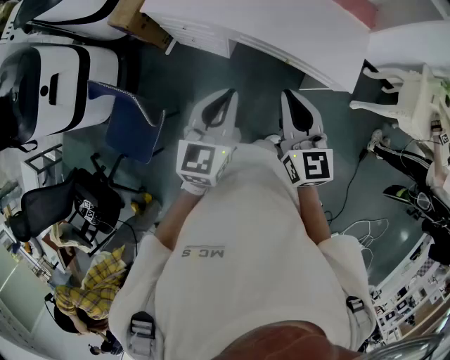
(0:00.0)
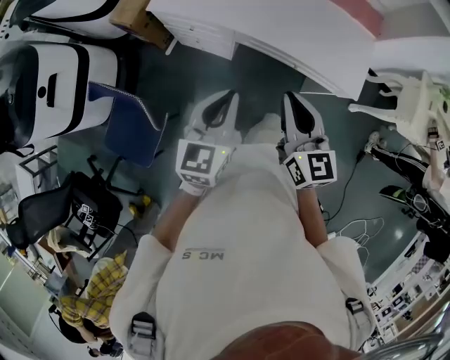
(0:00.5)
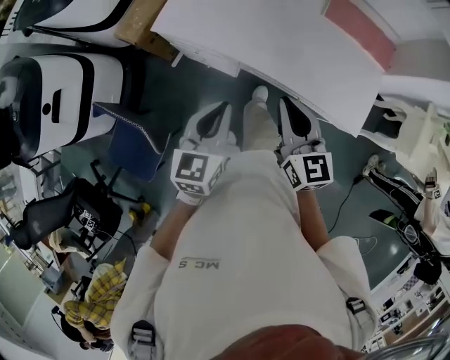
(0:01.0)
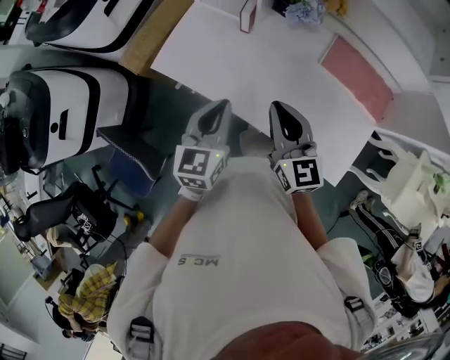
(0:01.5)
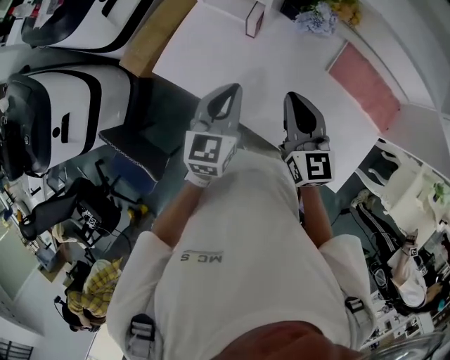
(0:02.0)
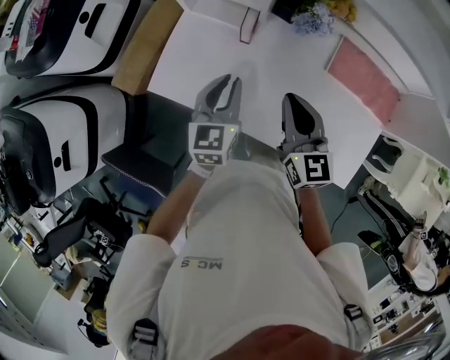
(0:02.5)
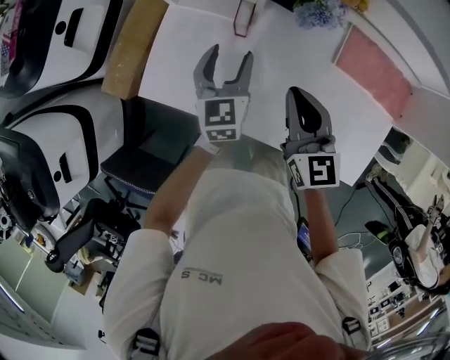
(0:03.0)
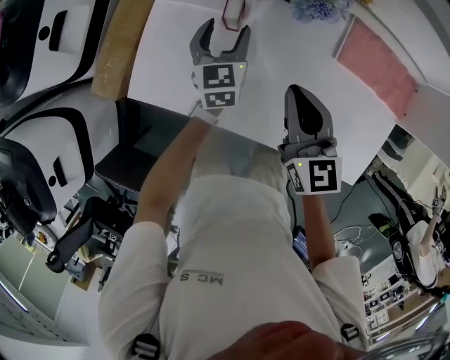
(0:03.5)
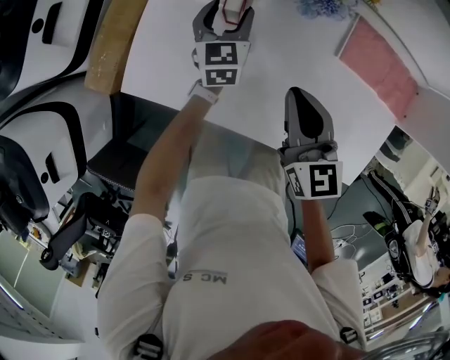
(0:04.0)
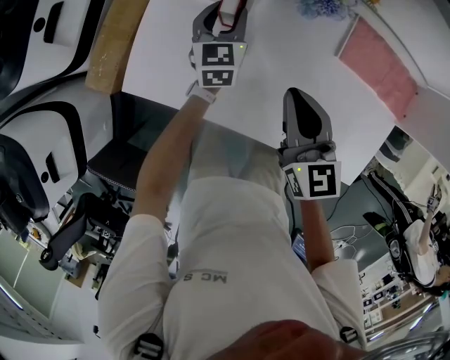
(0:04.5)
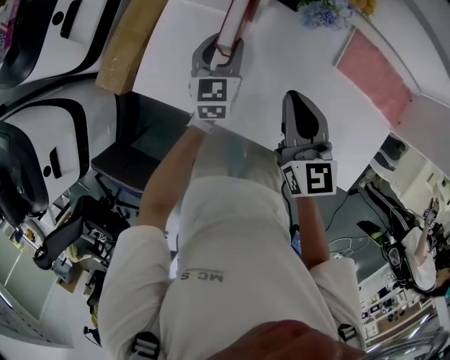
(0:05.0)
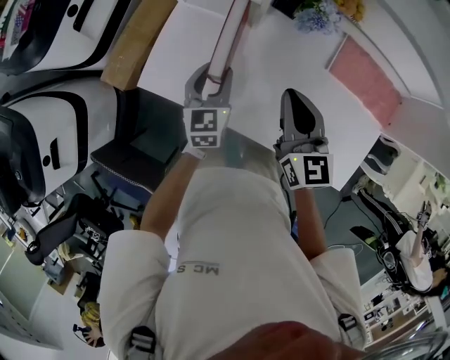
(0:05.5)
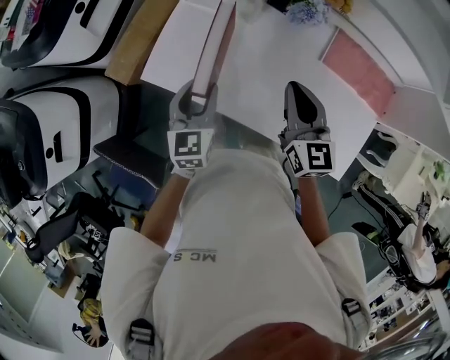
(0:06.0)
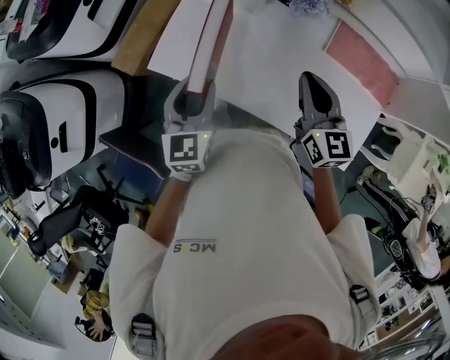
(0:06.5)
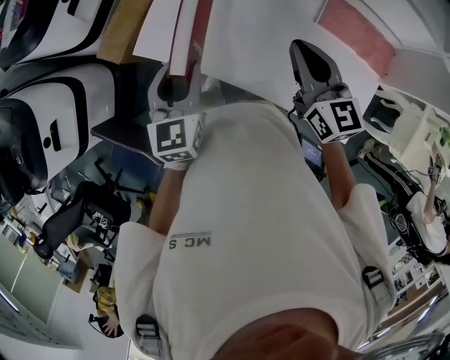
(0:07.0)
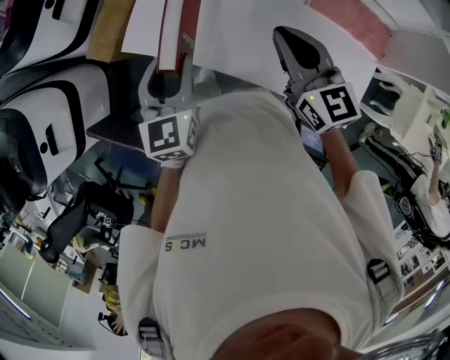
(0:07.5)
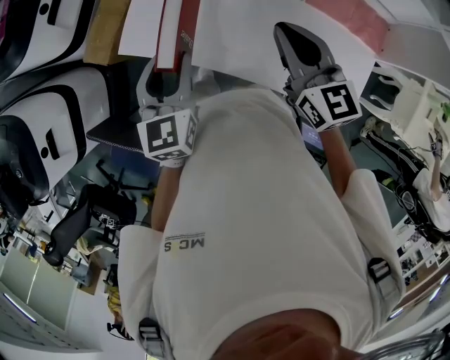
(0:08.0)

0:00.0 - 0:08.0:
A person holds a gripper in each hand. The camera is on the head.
0:00.0 - 0:02.0: The pair of grippers is taken forward, some 50 cm.
0:02.0 - 0:04.0: The right gripper is displaced downward and forward by about 15 cm. The left gripper travels forward and downward by some 35 cm, and opens its fingers.
0:04.0 - 0:06.0: The right gripper is displaced upward and backward by roughly 10 cm. Meanwhile the left gripper shifts roughly 30 cm backward, upward and to the left.
0:06.0 - 0:08.0: The left gripper heads upward and backward, covering about 10 cm. Meanwhile the right gripper changes place by about 5 cm.

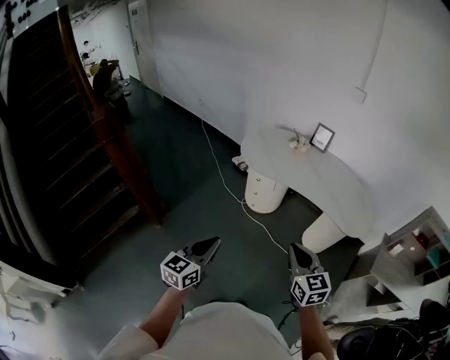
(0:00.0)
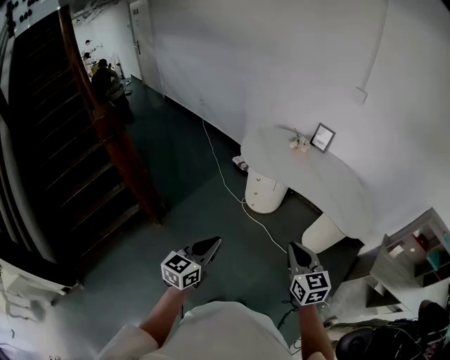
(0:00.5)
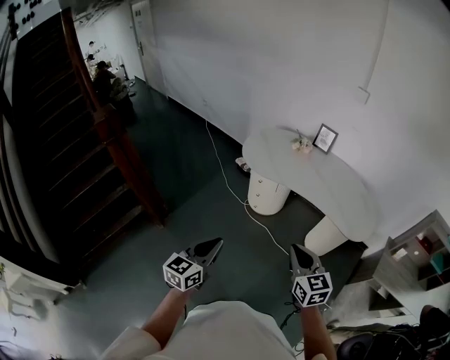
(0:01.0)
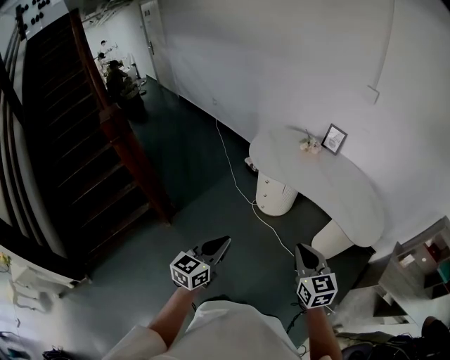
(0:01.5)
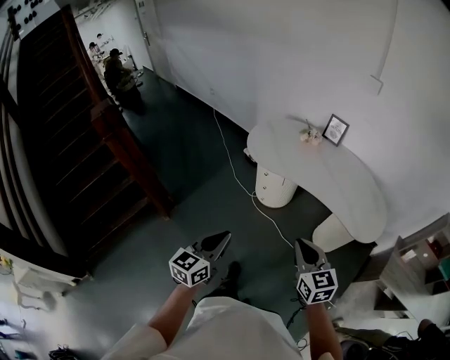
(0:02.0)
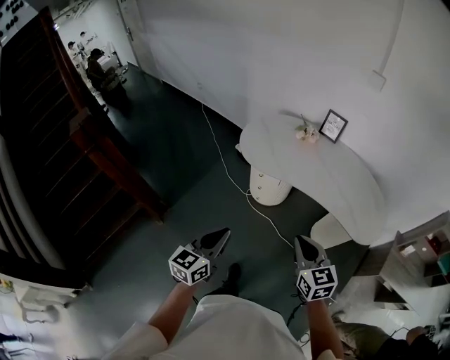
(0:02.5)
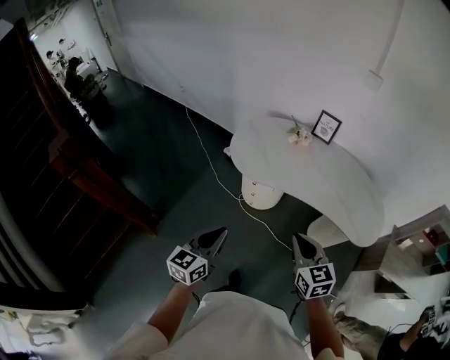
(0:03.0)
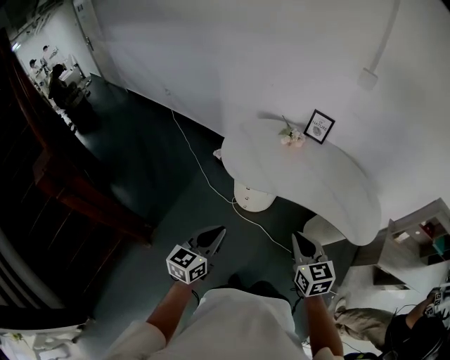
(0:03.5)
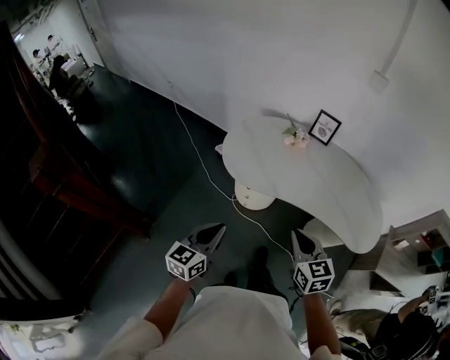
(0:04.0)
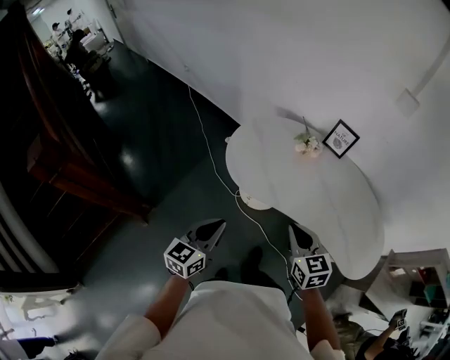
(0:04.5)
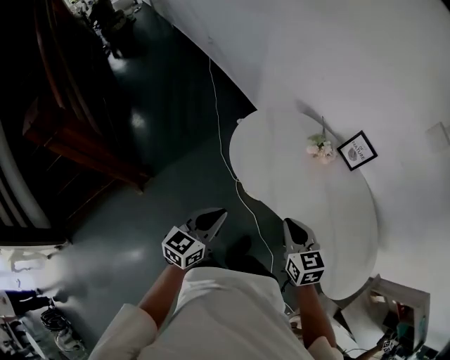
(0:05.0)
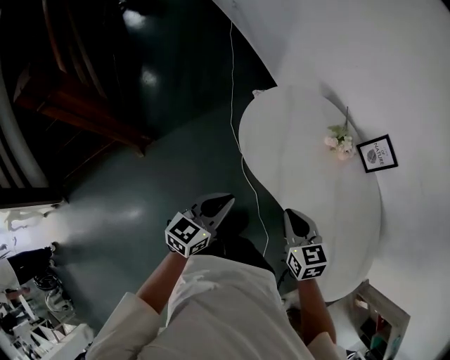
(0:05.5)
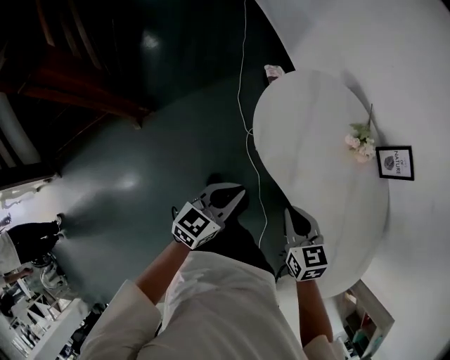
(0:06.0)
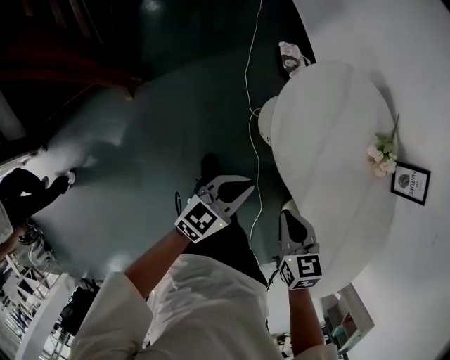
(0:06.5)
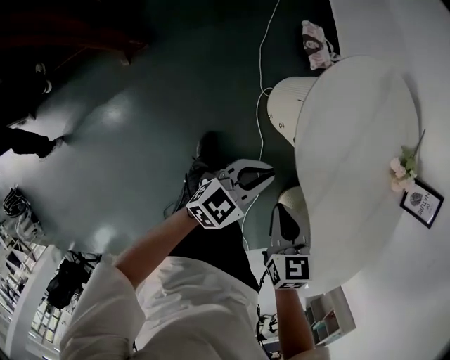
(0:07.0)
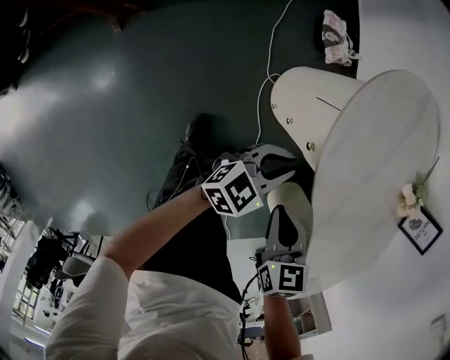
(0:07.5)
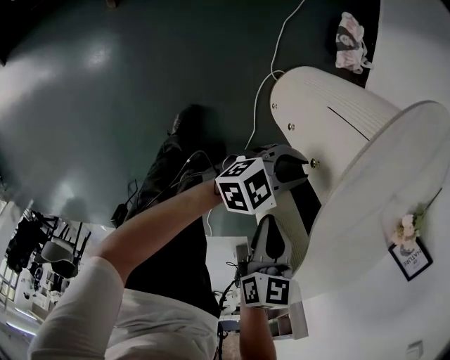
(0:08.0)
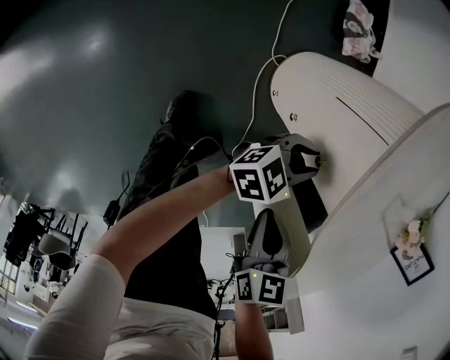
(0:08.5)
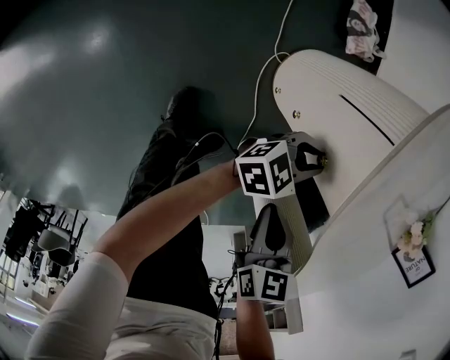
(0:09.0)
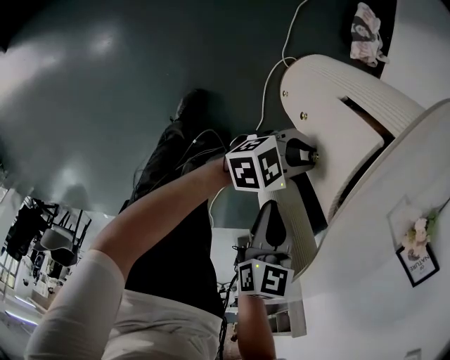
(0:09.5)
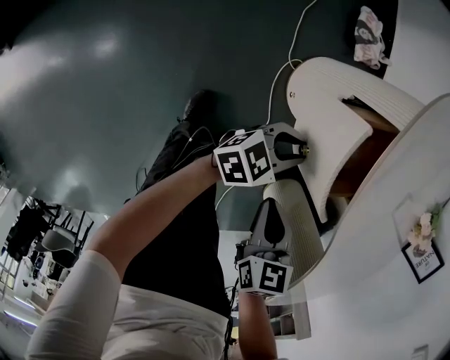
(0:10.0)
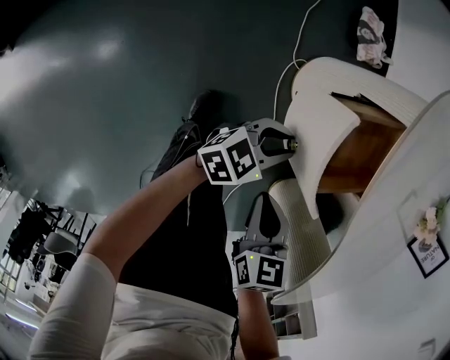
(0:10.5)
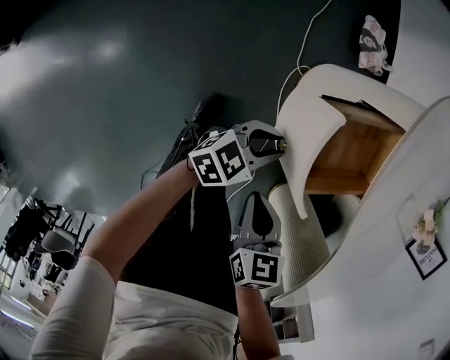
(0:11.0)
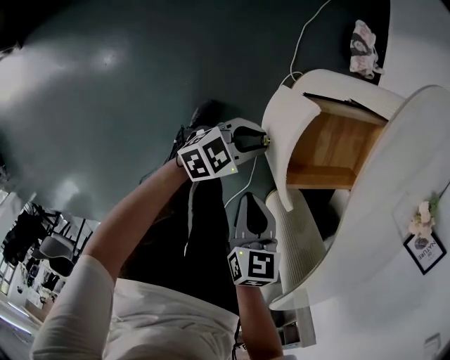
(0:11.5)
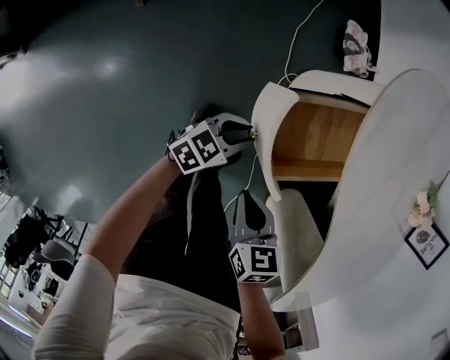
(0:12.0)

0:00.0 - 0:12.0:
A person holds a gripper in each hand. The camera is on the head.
0:00.0 - 0:02.0: The left gripper heads forward and to the right, covering approximately 10 cm, while the right gripper moves forward, some 10 cm.
0:02.0 - 0:04.0: Both grippers move forward, approximately 30 cm.
0:04.0 - 0:06.0: The right gripper ends up about 30 cm from where it was, and turns by about 40 degrees. The left gripper shifts by some 25 cm, and turns by approximately 20 degrees.
0:06.0 - 0:08.0: Both grippers move downward, approximately 35 cm.
0:08.0 - 0:10.0: The right gripper shifts by approximately 5 cm. The left gripper heads backward, covering about 5 cm.
0:10.0 - 0:12.0: The right gripper travels backward by roughly 5 cm; the left gripper goes some 15 cm to the left and backward.

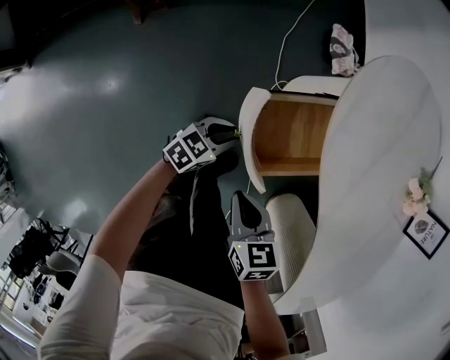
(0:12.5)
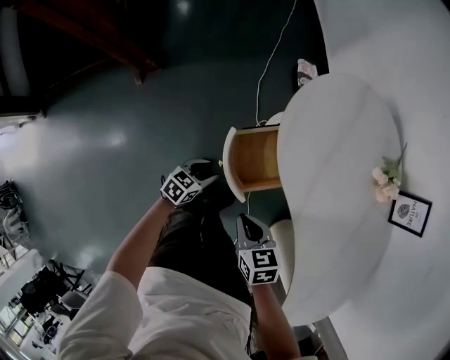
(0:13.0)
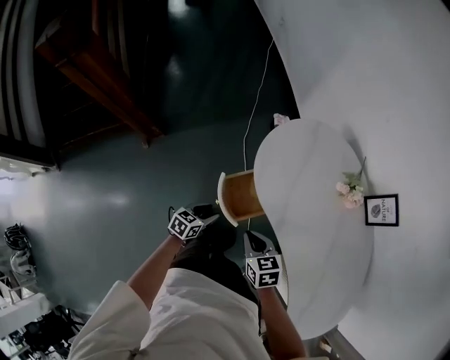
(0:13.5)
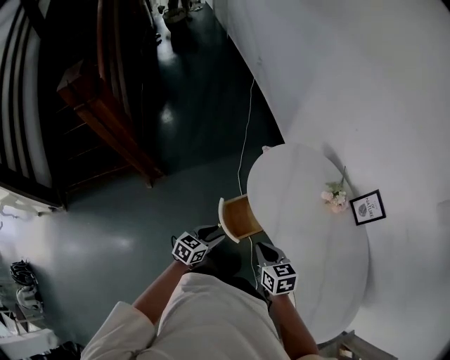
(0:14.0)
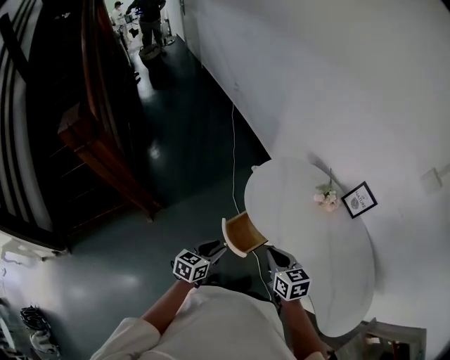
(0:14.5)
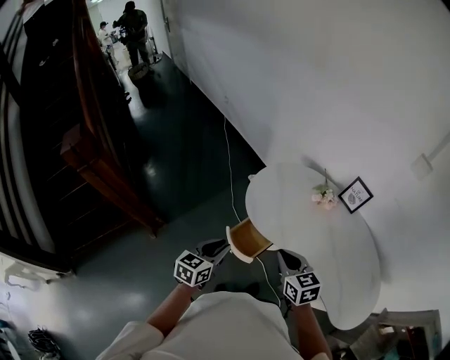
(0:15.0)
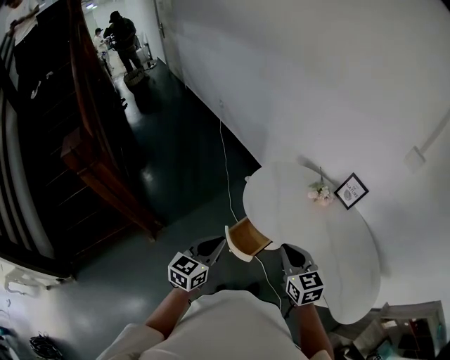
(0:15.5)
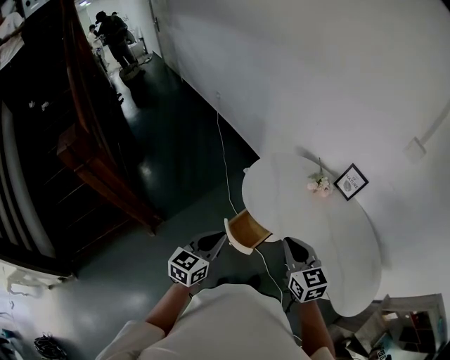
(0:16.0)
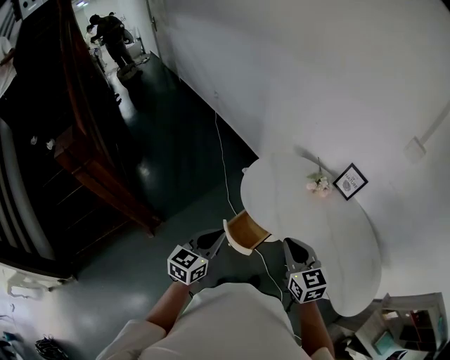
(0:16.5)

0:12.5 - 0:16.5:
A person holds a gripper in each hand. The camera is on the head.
0:12.5 - 0:14.5: The grippers both shift upward by roughly 40 cm. The right gripper swivels some 30 degrees.
0:14.5 - 0:16.5: Both grippers travel together upward, roughly 15 cm. The right gripper rotates roughly 20 degrees. Meanwhile the left gripper closes its fingers.

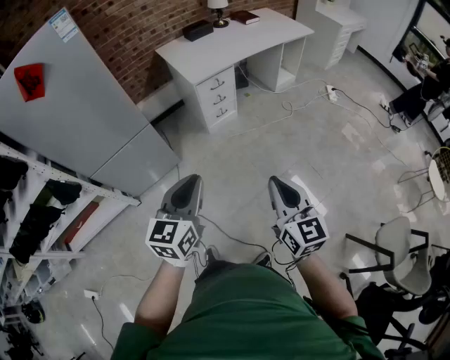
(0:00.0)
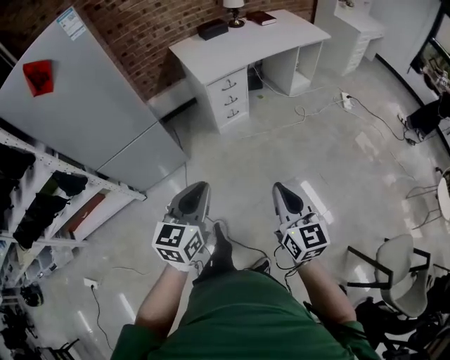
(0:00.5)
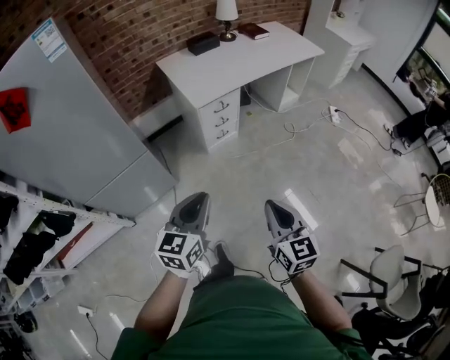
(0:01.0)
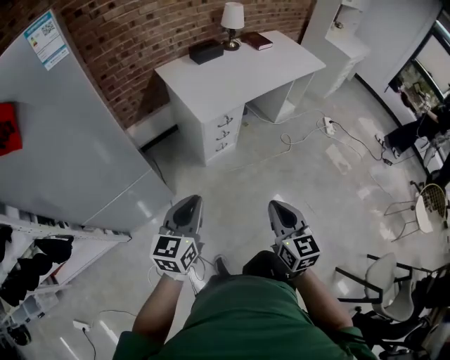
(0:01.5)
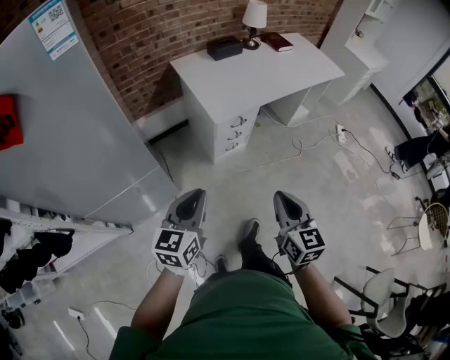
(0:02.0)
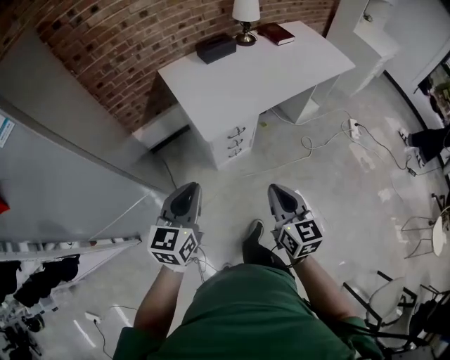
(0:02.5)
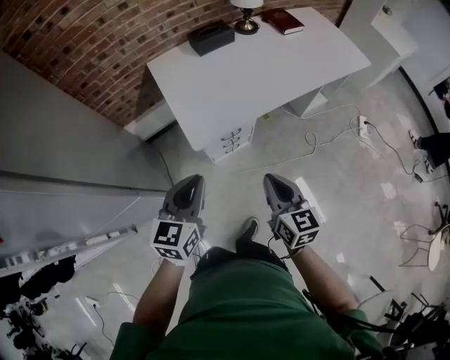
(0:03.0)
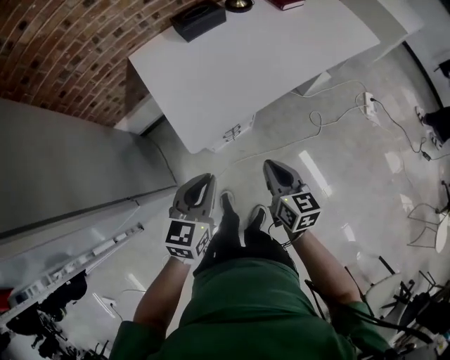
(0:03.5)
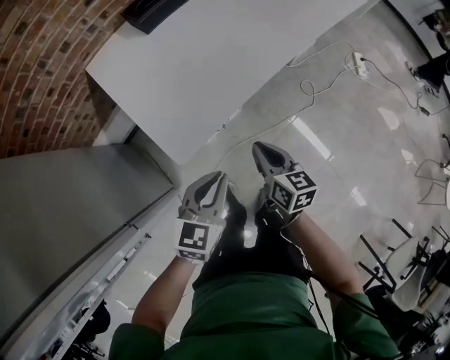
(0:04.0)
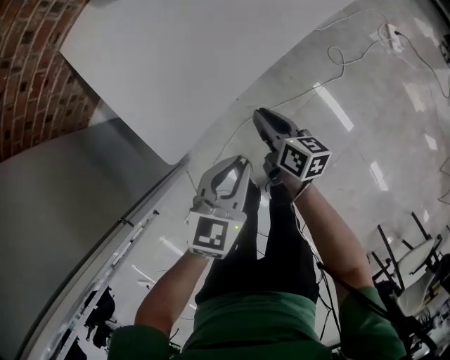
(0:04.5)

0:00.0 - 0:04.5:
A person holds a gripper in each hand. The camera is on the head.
0:00.0 - 0:02.0: The right gripper is displaced forward by approximately 30 cm. The left gripper travels forward and to the left by some 35 cm.
0:02.0 - 0:04.5: The two grippers travel together, forward, some 50 cm. The grippers both shift downward by approximately 35 cm. The left gripper changes its angle by some 30 degrees. Meanwhile the right gripper twists about 40 degrees clockwise, seen from behind.
